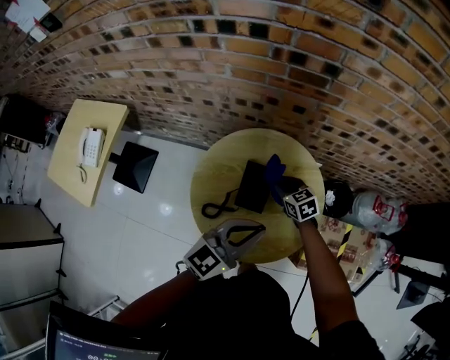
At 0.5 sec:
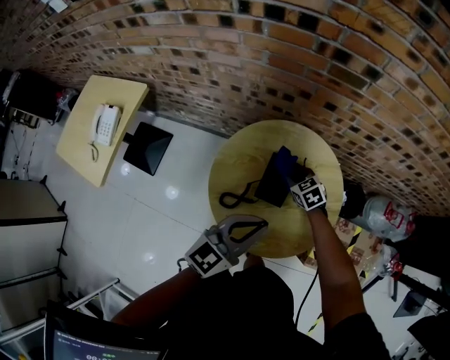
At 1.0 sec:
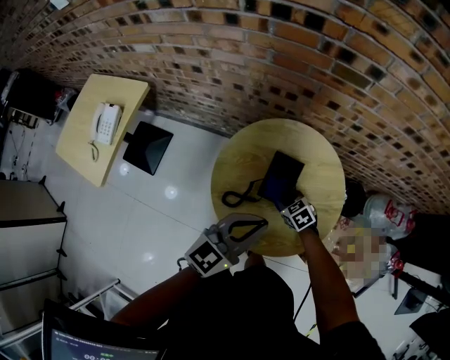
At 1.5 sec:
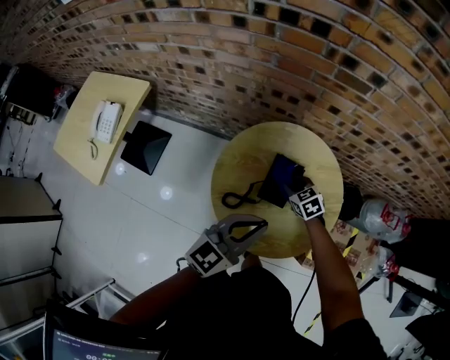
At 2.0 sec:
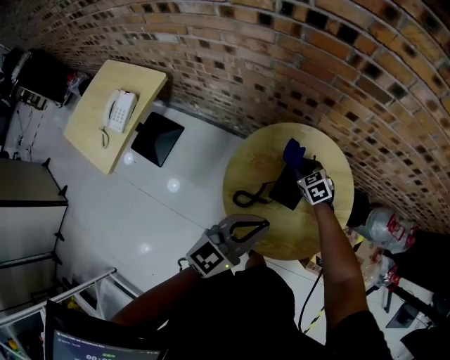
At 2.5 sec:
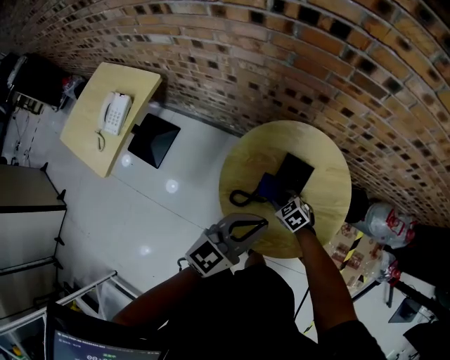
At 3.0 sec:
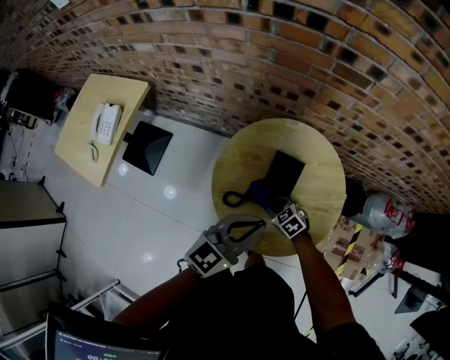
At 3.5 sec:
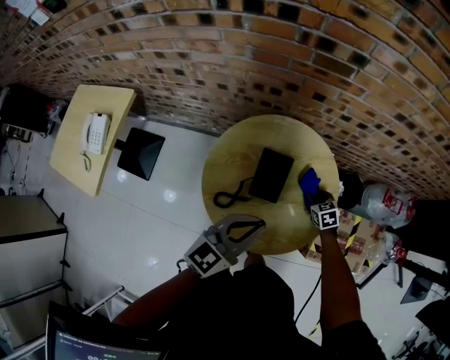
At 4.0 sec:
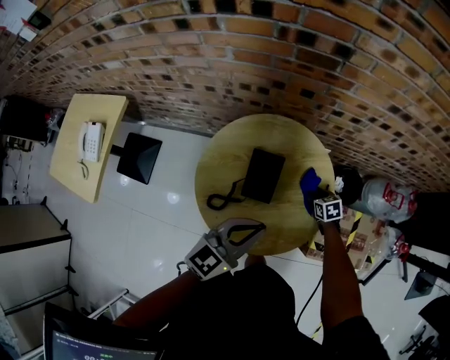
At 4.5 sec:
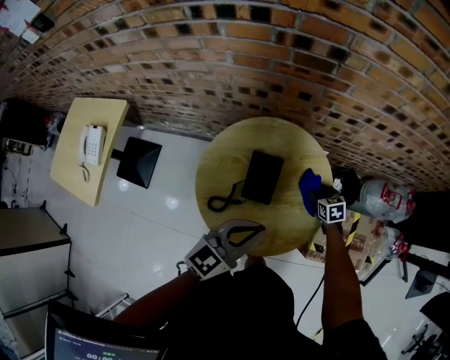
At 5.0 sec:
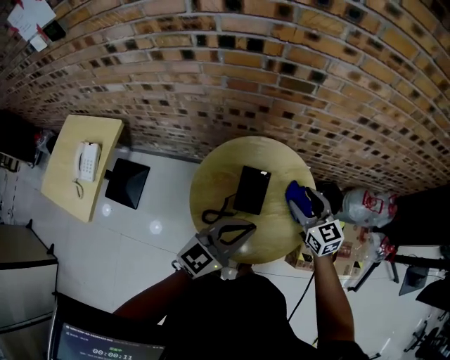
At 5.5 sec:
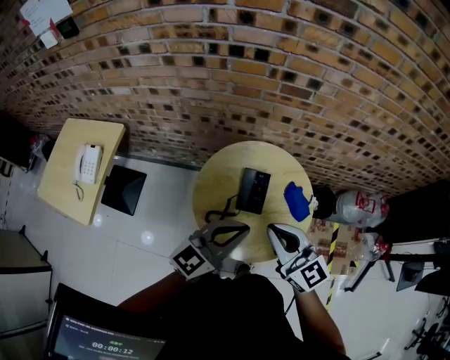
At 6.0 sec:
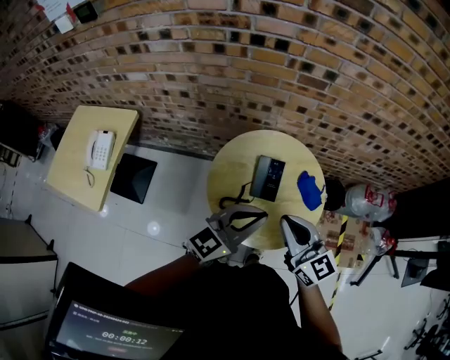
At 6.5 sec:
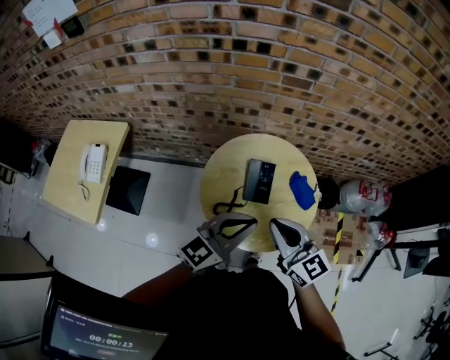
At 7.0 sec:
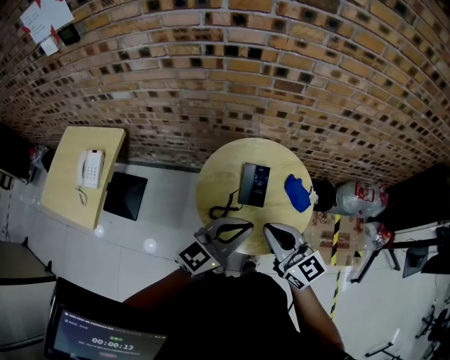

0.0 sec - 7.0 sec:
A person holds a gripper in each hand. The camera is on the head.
0.0 sec - 2.0 sec: The two grippers go some 10 cm to the left. The right gripper travels backward and back again, approximately 10 cm each way, and swivels roughly 20 degrees.
2.0 sec - 3.5 sec: The right gripper heads to the right and backward, covering roughly 20 cm, and rotates some 20 degrees. The left gripper goes approximately 5 cm to the right.
3.5 sec - 5.0 sec: The right gripper is displaced upward by about 25 cm, tips its fingers upward by some 40 degrees, and opens. The left gripper goes roughly 5 cm upward.
5.0 sec - 7.0 sec: The left gripper travels backward by some 5 cm, while the right gripper travels backward, to the left and upward by about 25 cm, and closes.

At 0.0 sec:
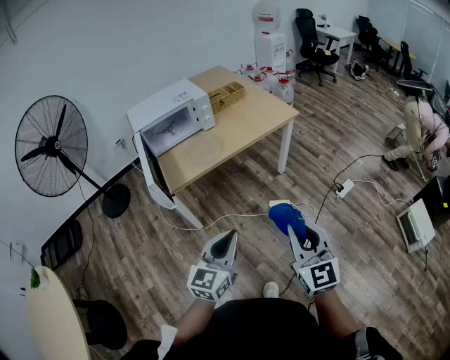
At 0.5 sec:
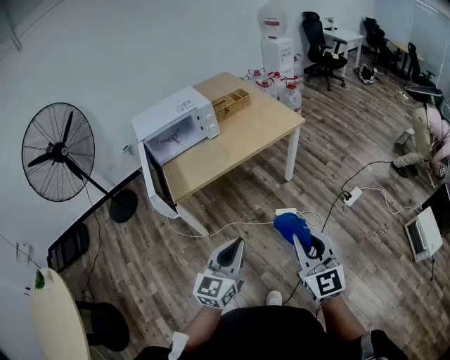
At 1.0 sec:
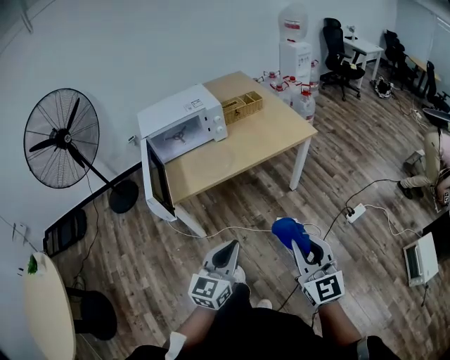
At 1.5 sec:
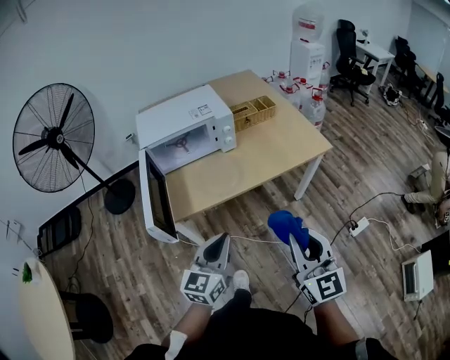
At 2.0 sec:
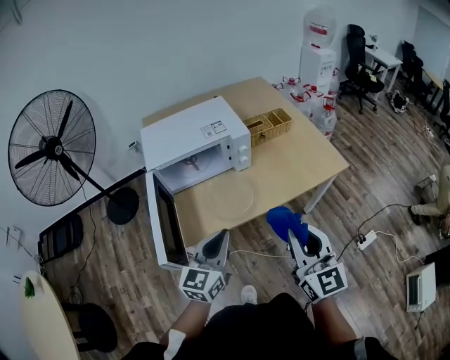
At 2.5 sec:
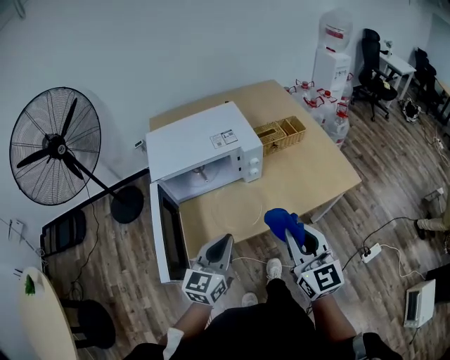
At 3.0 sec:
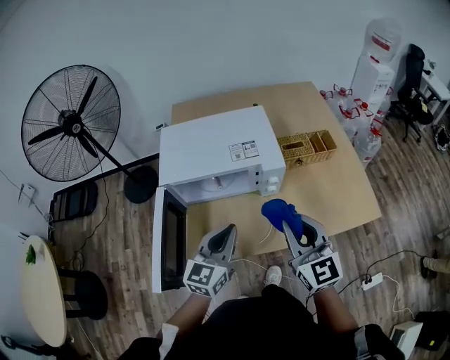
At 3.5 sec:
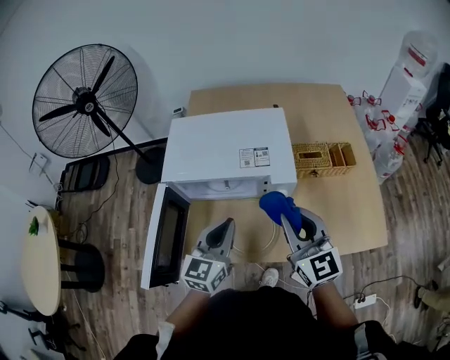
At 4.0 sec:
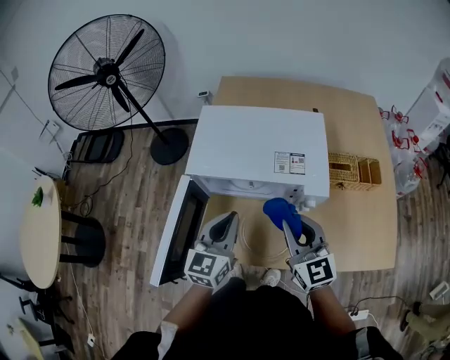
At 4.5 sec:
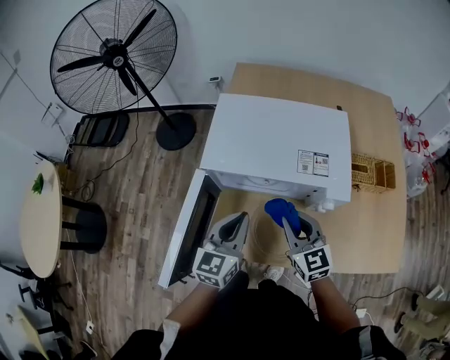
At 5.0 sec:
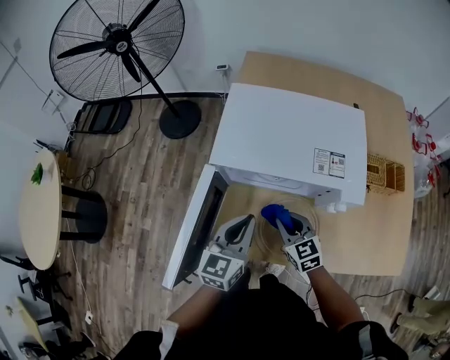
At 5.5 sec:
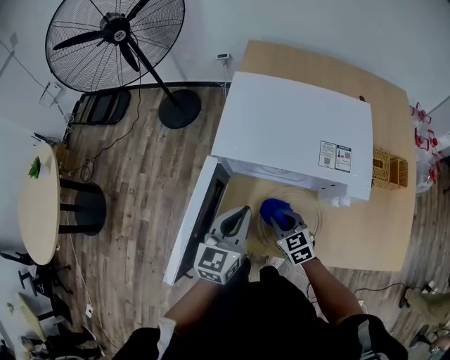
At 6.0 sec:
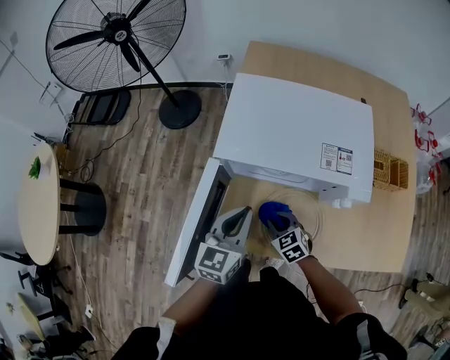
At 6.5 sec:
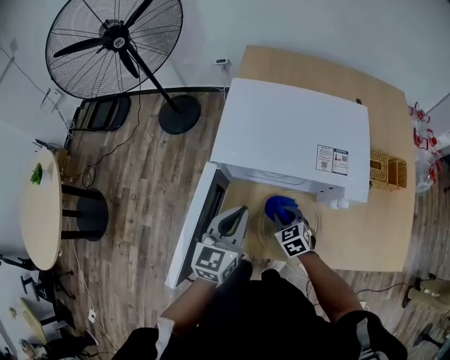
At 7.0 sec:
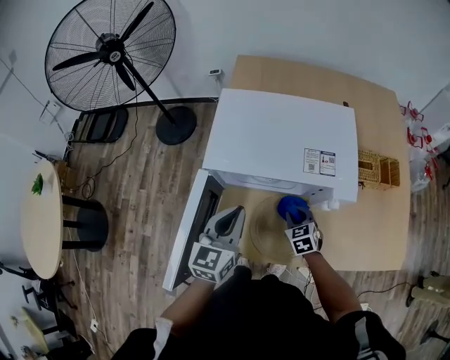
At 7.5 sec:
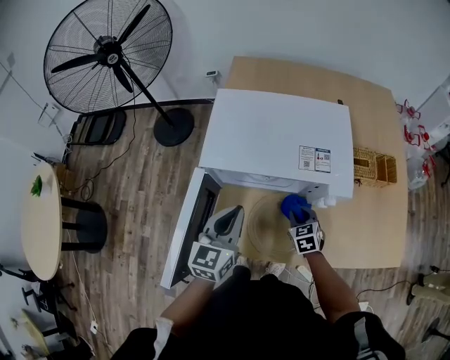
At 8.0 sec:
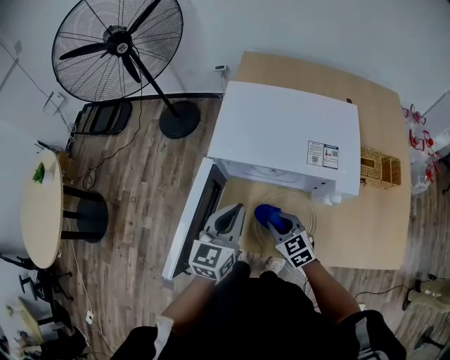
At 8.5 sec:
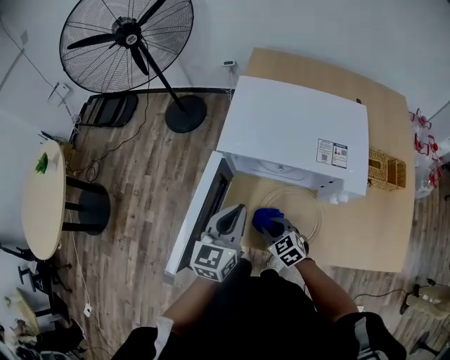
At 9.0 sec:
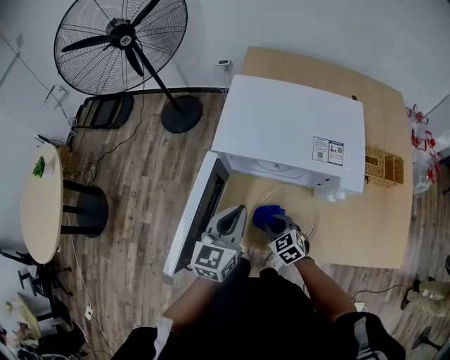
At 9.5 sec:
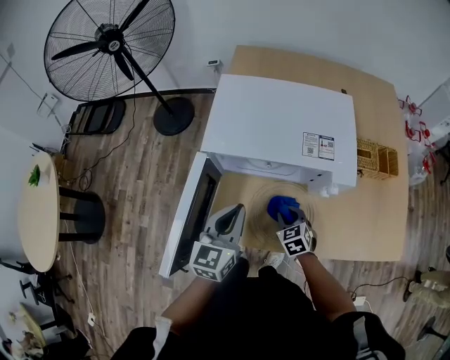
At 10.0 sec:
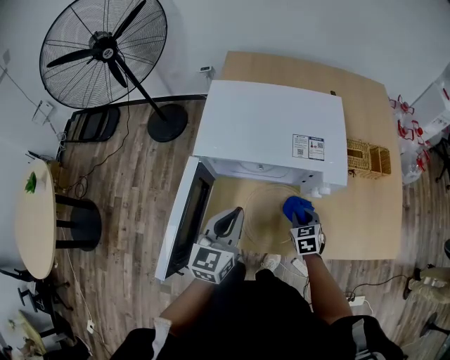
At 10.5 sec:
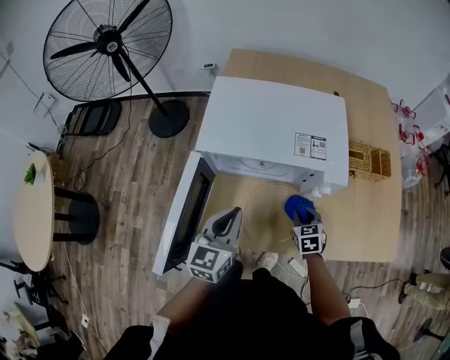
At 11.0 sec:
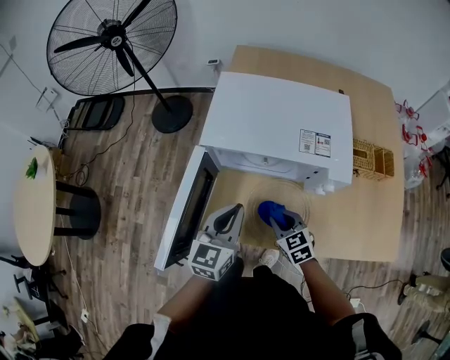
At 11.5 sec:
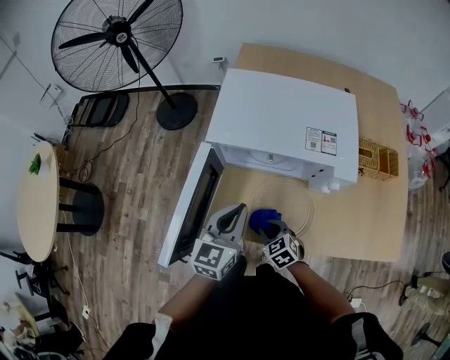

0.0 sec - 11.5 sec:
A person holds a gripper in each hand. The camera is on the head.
0.0 sec - 2.0 sec: The two grippers go about 35 cm forward.
2.0 sec - 4.0 sec: The left gripper shifts by about 25 cm, and rotates about 30 degrees, while the right gripper shifts by approximately 35 cm, and changes its angle by approximately 40 degrees.
4.0 sec - 6.0 sec: The left gripper moves downward and to the left, approximately 10 cm; the right gripper travels downward and to the left by approximately 30 cm, and angles its fingers downward, by approximately 40 degrees.
6.0 sec - 7.5 sec: The right gripper shifts about 15 cm to the right, and turns by some 20 degrees.
7.5 sec - 9.5 sec: The right gripper travels to the left by about 5 cm.
9.5 sec - 11.5 sec: The right gripper heads backward and to the left, covering roughly 10 cm.

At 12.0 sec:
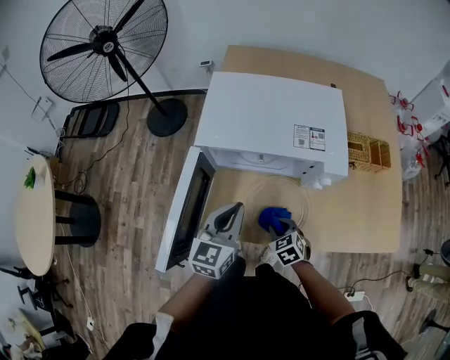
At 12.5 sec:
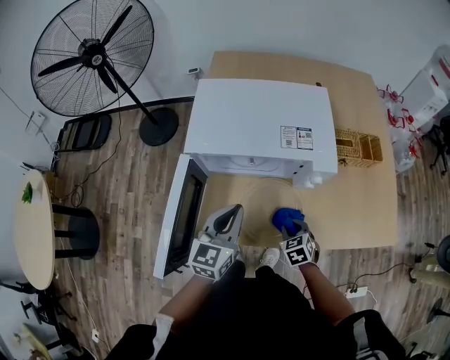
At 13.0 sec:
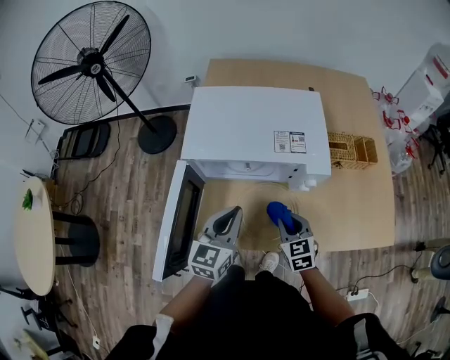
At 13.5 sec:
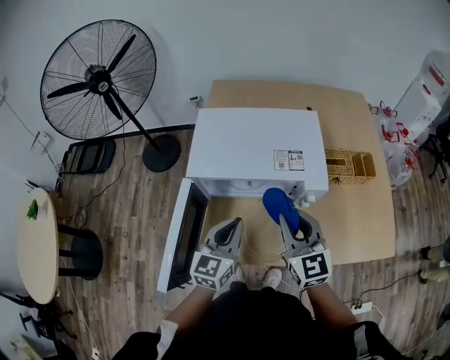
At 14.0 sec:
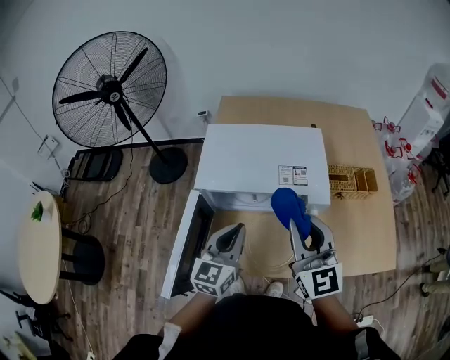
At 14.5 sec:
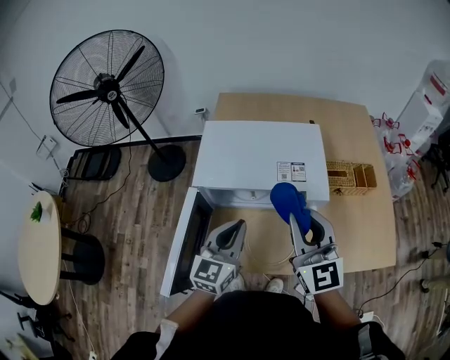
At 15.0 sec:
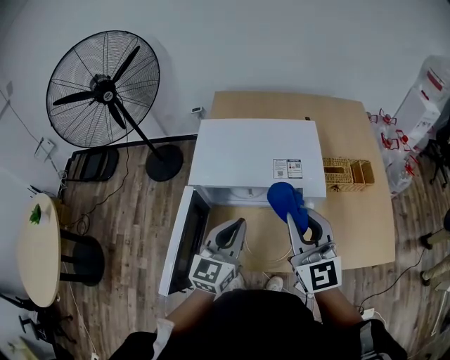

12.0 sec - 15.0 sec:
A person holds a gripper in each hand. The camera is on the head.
12.0 sec - 13.5 sec: The right gripper is displaced upward by approximately 25 cm, and angles its fingers upward, by approximately 40 degrees.
13.5 sec - 15.0 sec: The right gripper is displaced upward by approximately 10 cm; the left gripper shifts by roughly 5 cm.

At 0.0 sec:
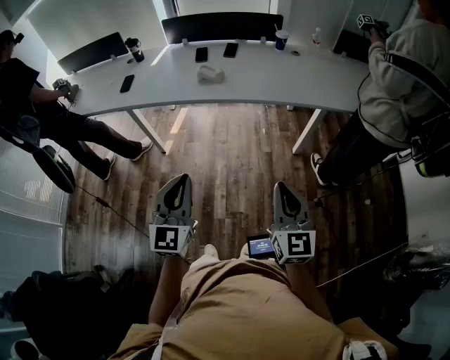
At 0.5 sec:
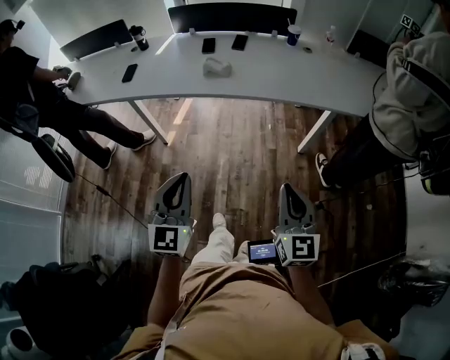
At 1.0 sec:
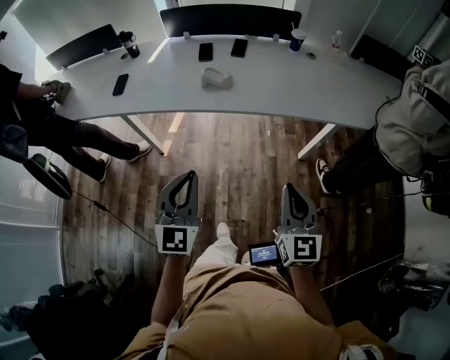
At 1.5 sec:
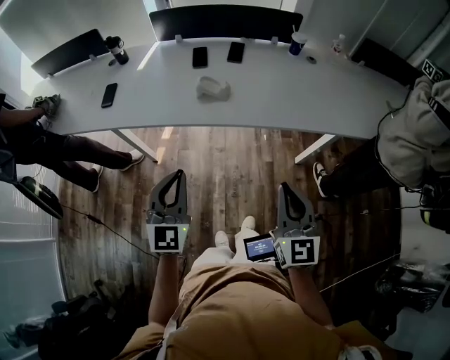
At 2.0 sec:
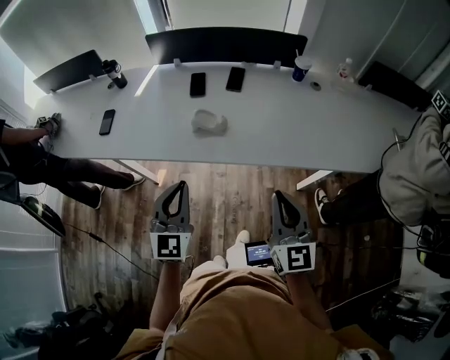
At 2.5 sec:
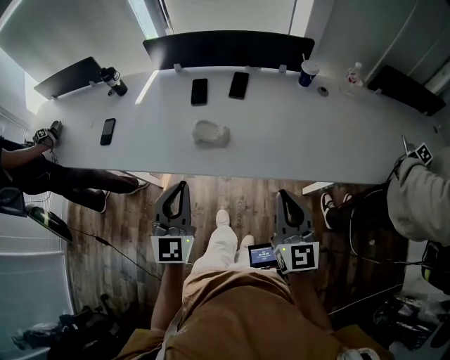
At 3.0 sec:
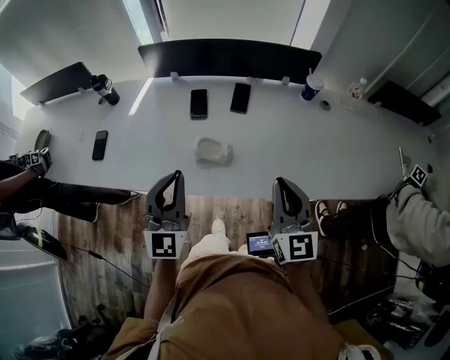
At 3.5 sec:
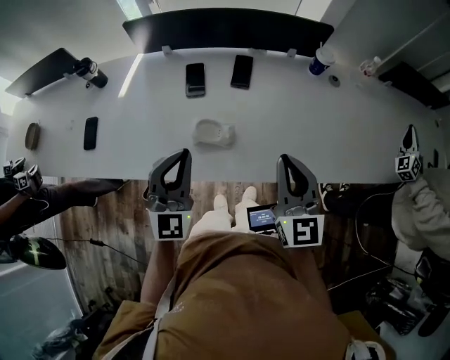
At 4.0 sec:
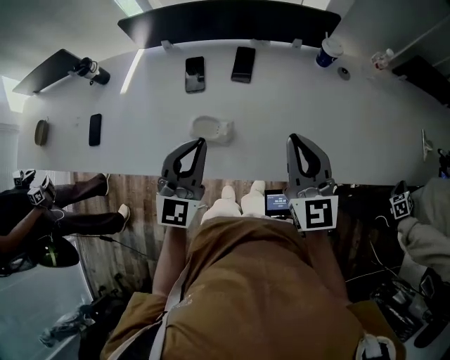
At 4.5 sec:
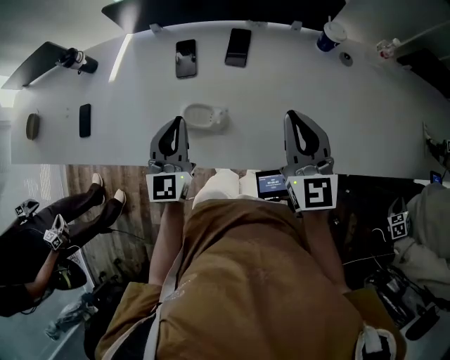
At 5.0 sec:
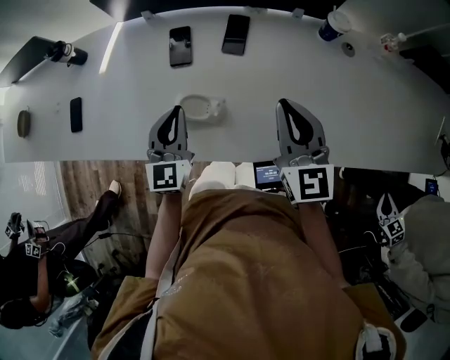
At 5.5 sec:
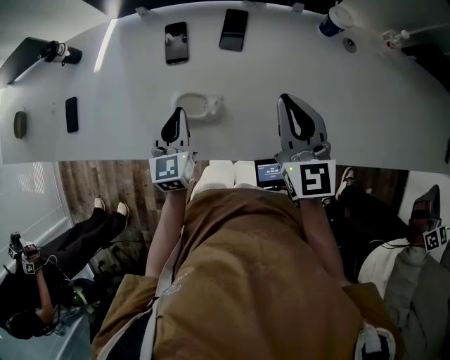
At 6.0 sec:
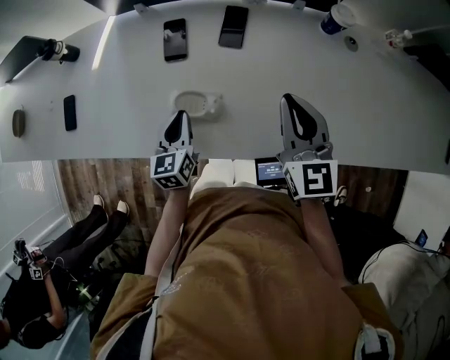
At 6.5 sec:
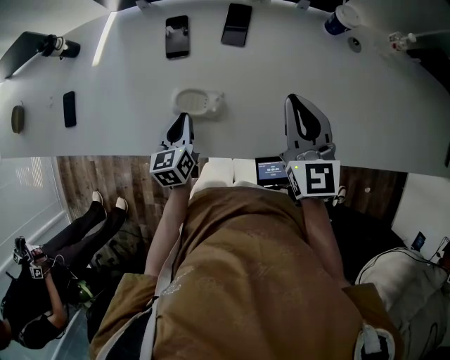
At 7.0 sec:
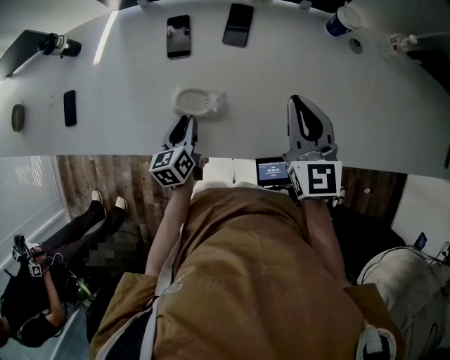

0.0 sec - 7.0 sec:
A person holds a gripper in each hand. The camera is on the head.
0.0 sec - 2.0 sec: The two grippers go roughly 35 cm forward.
2.0 sec - 3.5 sec: Both grippers move forward, roughly 20 cm.
3.5 sec - 5.0 sec: The left gripper travels downward and forward by approximately 15 cm, and rotates approximately 30 degrees, while the right gripper is displaced forward by about 10 cm.
5.0 sec - 7.0 sec: The left gripper is displaced downward by approximately 15 cm, and rotates approximately 40 degrees.
